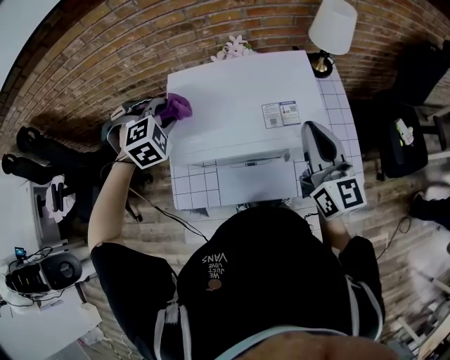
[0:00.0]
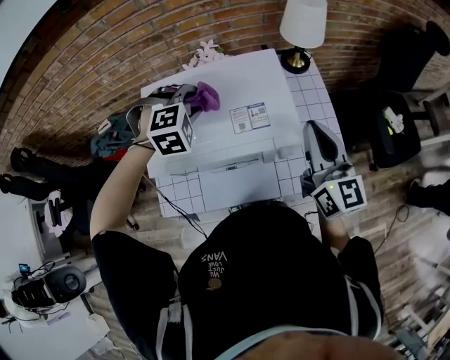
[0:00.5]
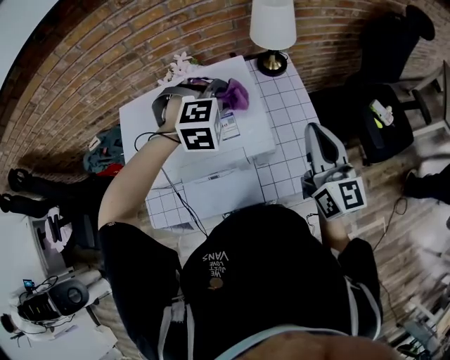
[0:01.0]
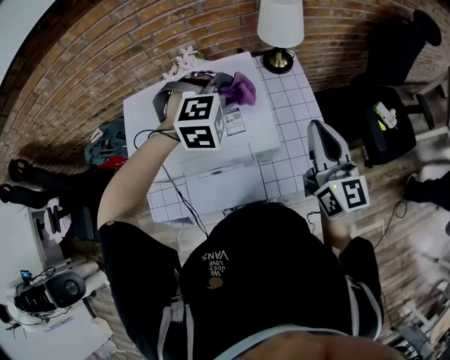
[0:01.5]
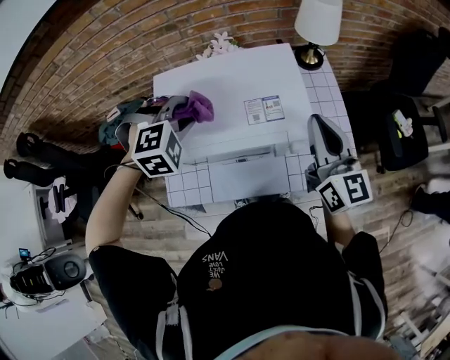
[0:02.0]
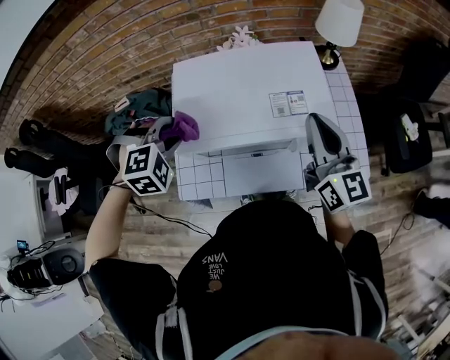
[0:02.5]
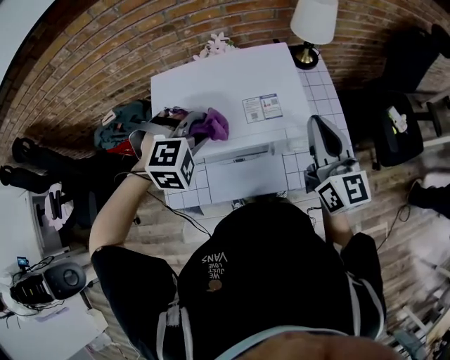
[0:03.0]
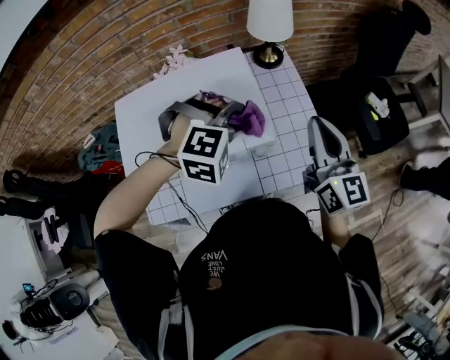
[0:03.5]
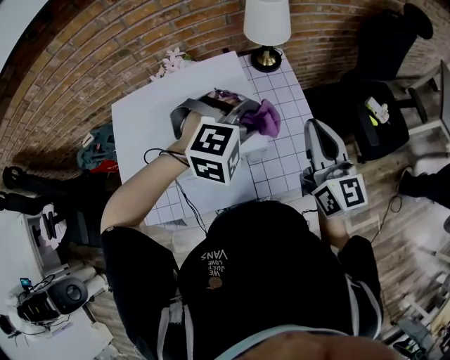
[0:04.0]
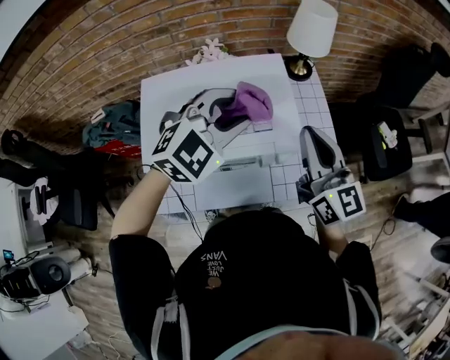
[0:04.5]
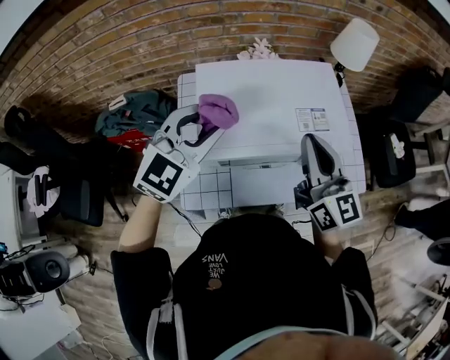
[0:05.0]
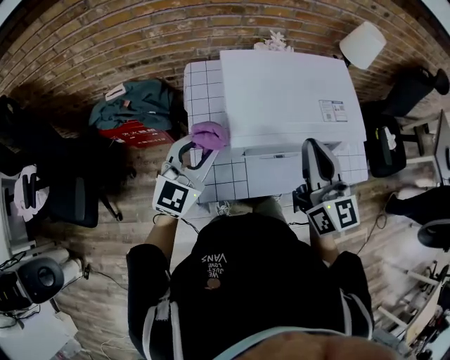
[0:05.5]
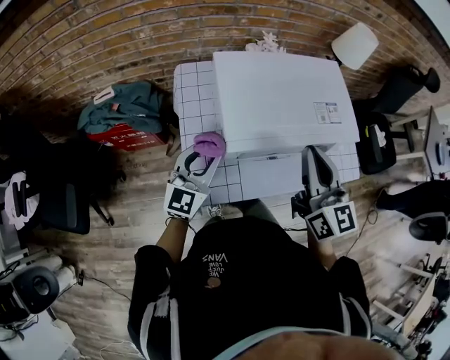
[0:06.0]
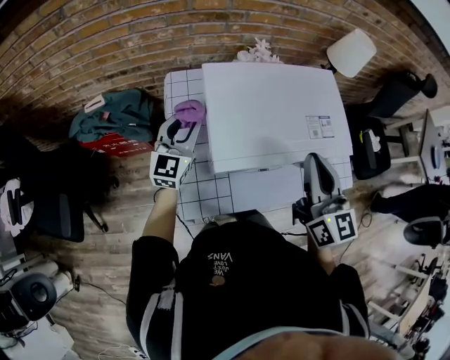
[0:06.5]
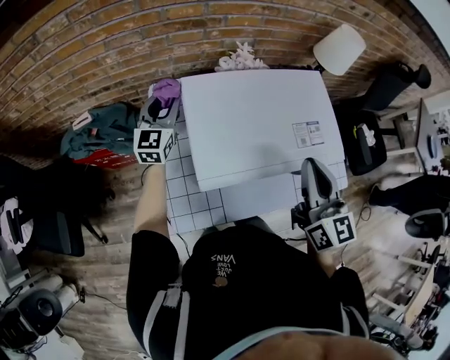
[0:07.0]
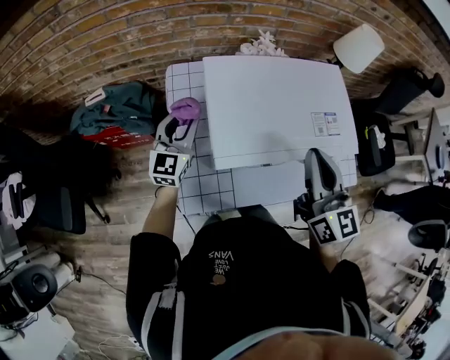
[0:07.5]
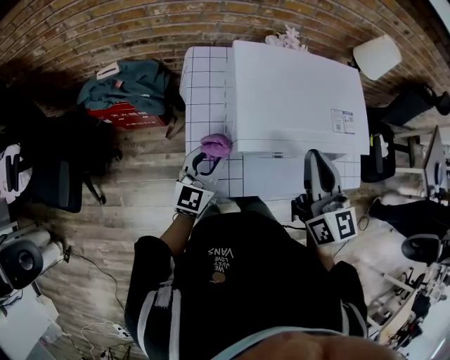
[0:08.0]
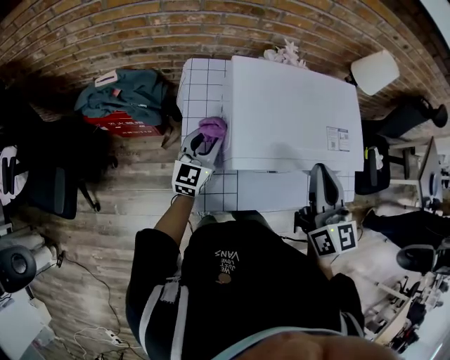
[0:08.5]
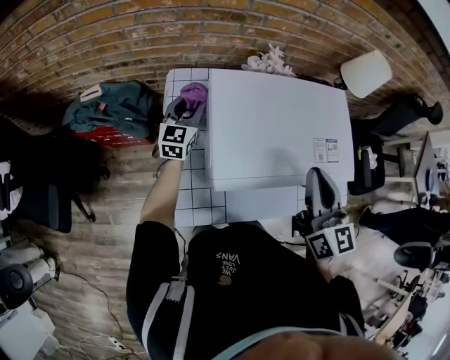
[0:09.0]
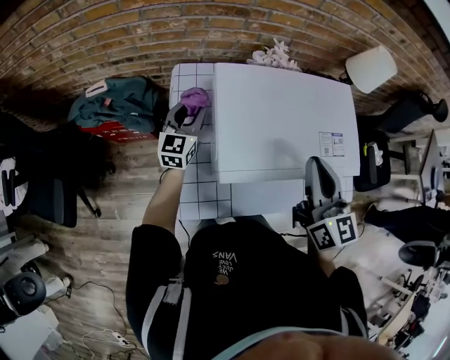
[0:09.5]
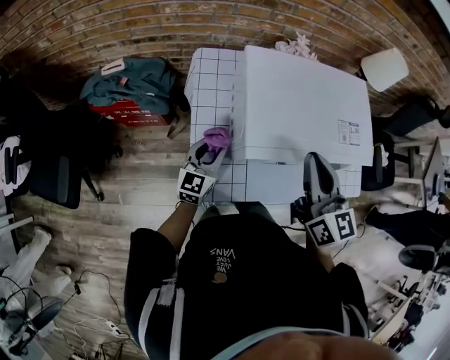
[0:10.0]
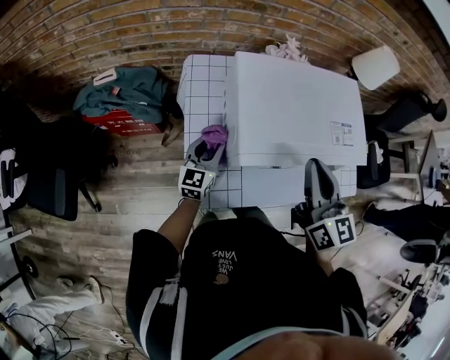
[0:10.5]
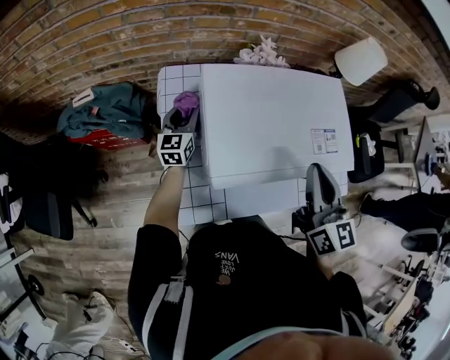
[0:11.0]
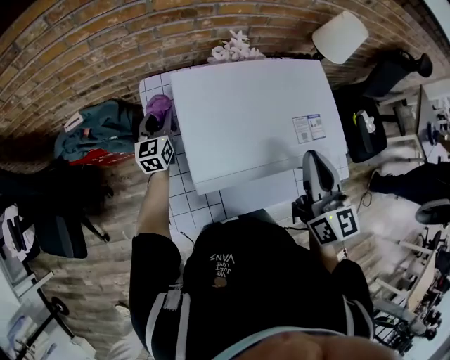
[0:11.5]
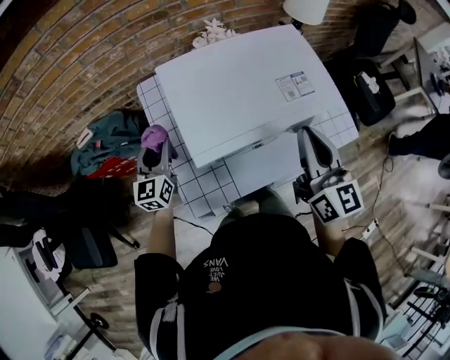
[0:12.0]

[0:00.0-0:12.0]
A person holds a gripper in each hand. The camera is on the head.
0:00.0 to 0:02.0: The left gripper is displaced to the right by about 10 cm. Meanwhile the right gripper heads to the right, covering about 5 cm.
0:02.0 to 0:04.0: The right gripper shifts by about 10 cm. The left gripper shifts by about 30 cm, and turns by about 30 degrees.
0:04.0 to 0:06.0: The grippers both shift to the left and backward by approximately 40 cm. The left gripper tilts its fingers approximately 50 degrees upward.
0:06.0 to 0:08.0: The right gripper moves roughly 5 cm to the right and comes back, while the left gripper goes some 5 cm downward, and reaches roughly 25 cm forward, then returns.
0:08.0 to 0:10.0: The left gripper moves downward, some 5 cm, and goes forward and returns, roughly 25 cm each way.
0:10.0 to 0:12.0: The right gripper is displaced to the right by roughly 10 cm. The left gripper heads upward, covering approximately 5 cm, and goes forward and returns, some 20 cm each way.

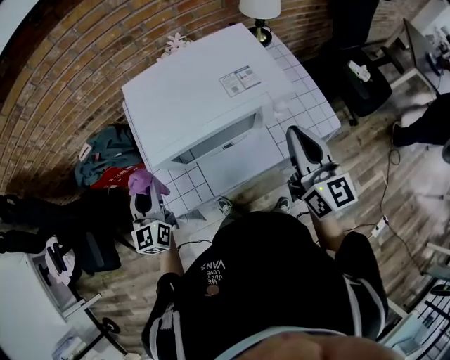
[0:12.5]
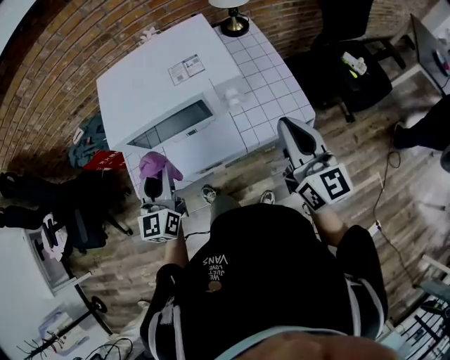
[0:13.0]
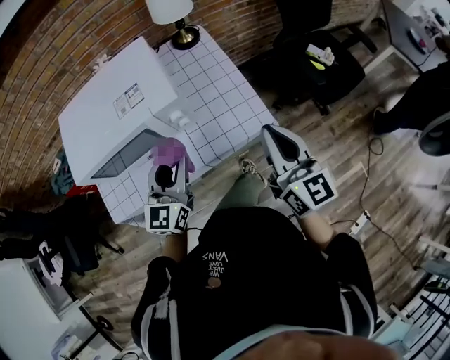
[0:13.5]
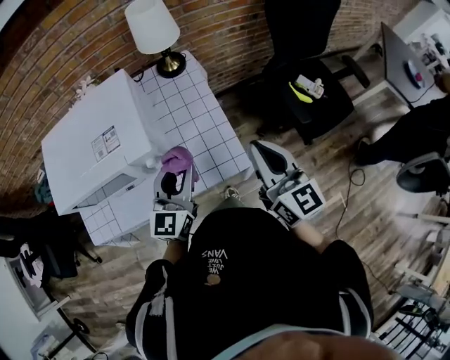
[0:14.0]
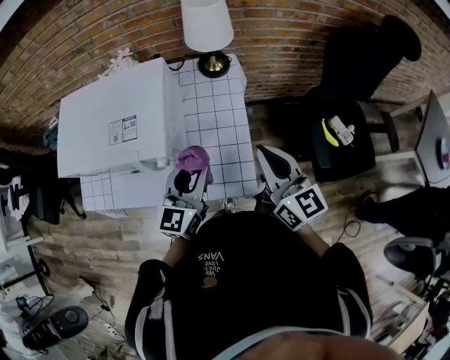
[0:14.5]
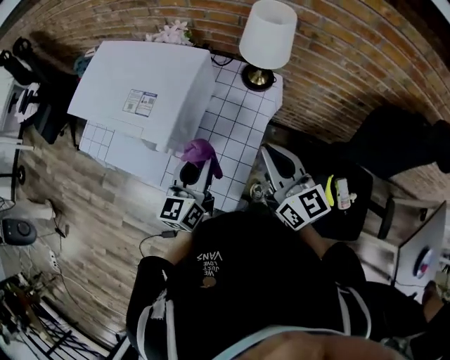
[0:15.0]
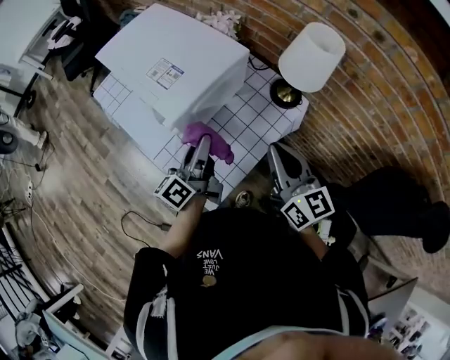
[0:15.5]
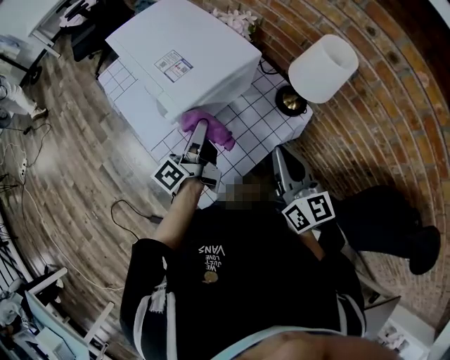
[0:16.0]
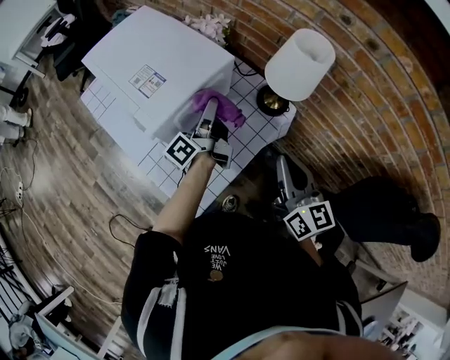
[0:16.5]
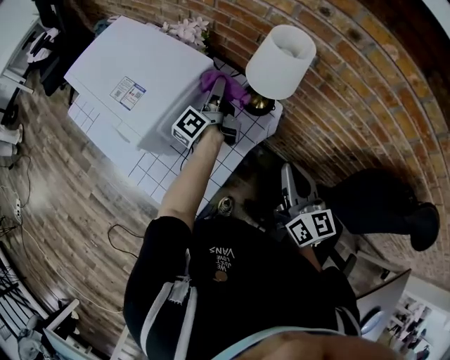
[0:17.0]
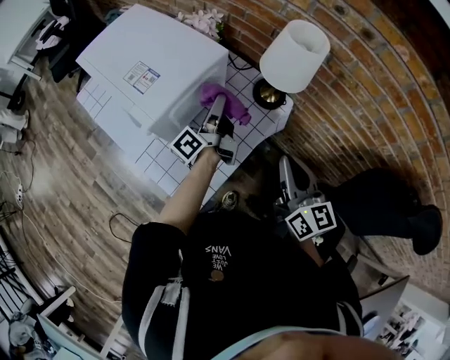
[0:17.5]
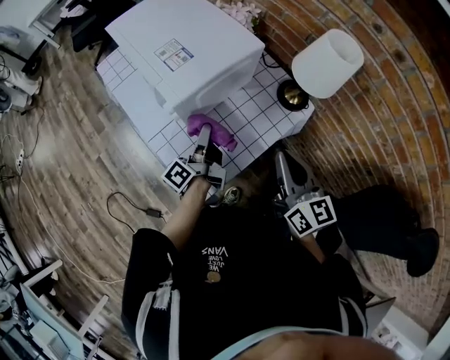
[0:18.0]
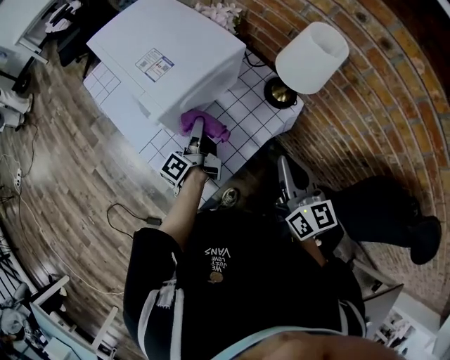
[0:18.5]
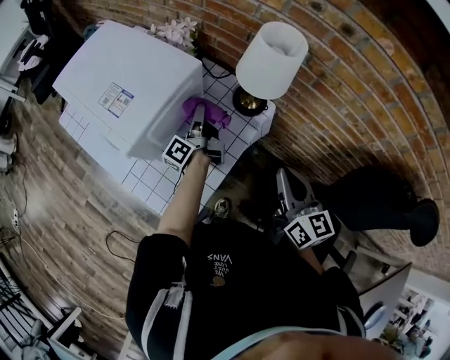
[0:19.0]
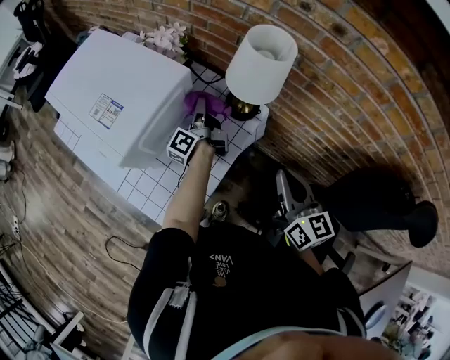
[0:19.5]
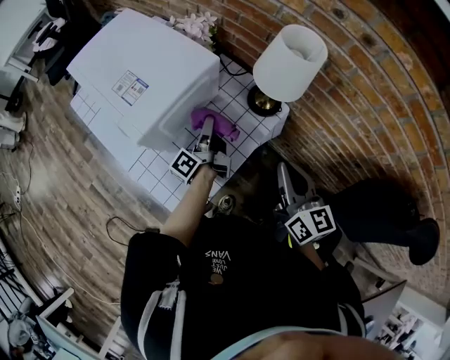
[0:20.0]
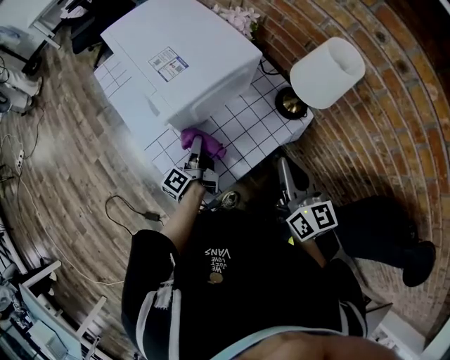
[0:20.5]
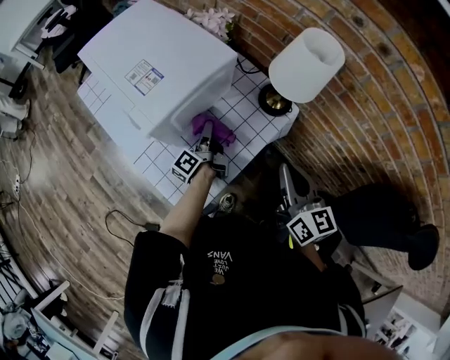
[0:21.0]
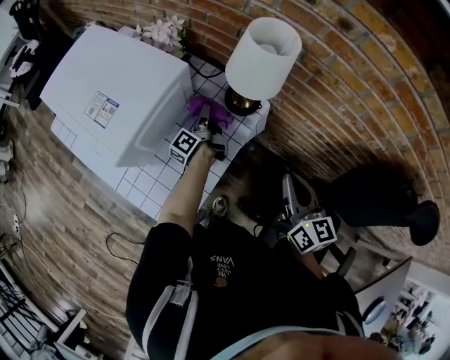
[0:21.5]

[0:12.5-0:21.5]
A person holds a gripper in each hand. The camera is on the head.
0:12.5 to 0:14.5: The right gripper moves to the right and forward, some 35 cm, and turns by roughly 30 degrees. Meanwhile the left gripper travels to the right by approximately 60 cm.
0:14.5 to 0:17.0: The right gripper ends up about 25 cm from where it was, and rotates about 30 degrees. Meanwhile the left gripper changes place by about 30 cm, and swivels some 80 degrees.
0:17.0 to 0:19.5: The left gripper shifts about 10 cm downward, and moves some 20 cm backward and comes back. Meanwhile the right gripper travels to the left and back again, about 10 cm each way.
0:19.5 to 0:21.5: The left gripper goes roughly 5 cm downward, and goes to the left and returns, about 20 cm each way. The right gripper travels to the left and back again, roughly 10 cm each way.

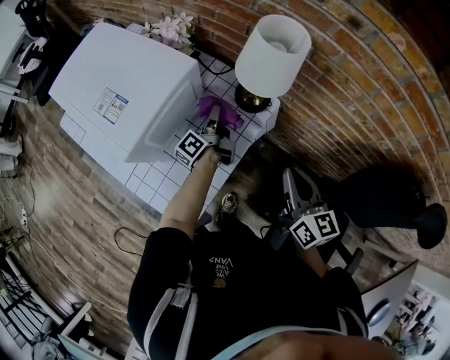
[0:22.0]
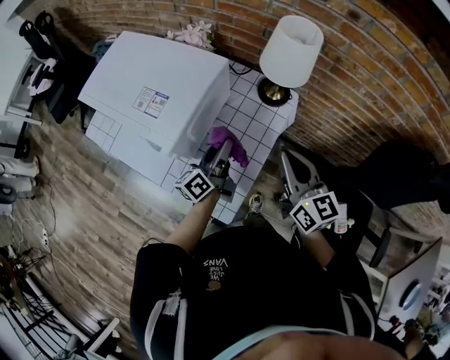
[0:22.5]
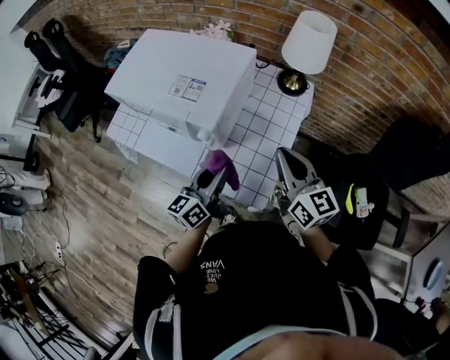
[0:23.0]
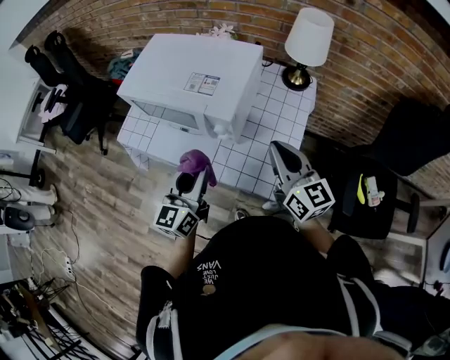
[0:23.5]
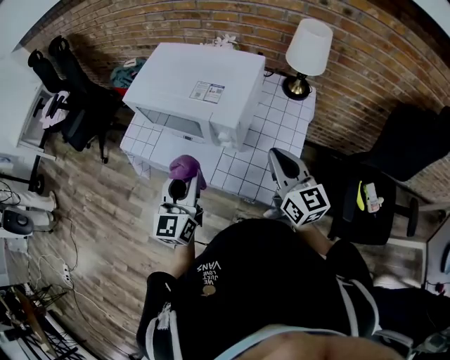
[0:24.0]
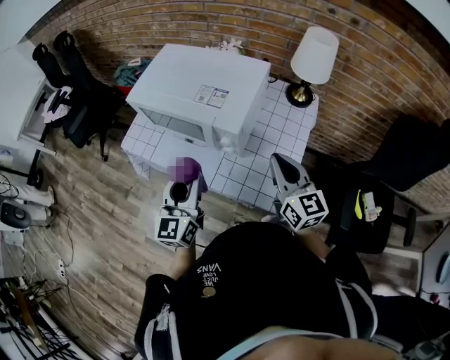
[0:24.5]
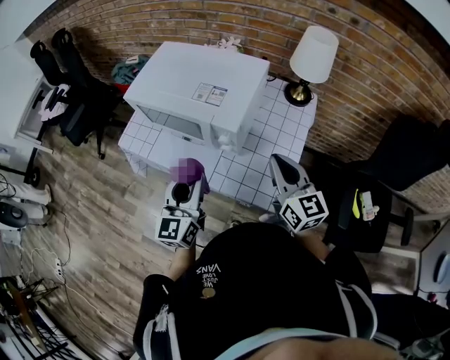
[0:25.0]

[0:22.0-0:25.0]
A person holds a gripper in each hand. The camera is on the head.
0:22.0 to 0:23.5: The left gripper shifts some 40 cm backward, to the left and upward, and rolls clockwise, seen from behind, by some 60 degrees. Meanwhile the right gripper shifts roughly 30 cm to the left.
0:23.5 to 0:25.0: There are only small adjustments of the grippers.

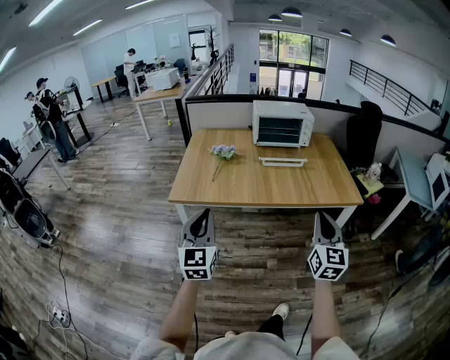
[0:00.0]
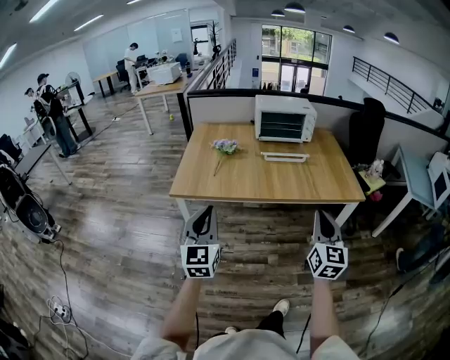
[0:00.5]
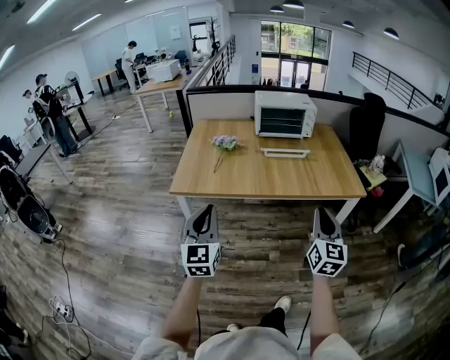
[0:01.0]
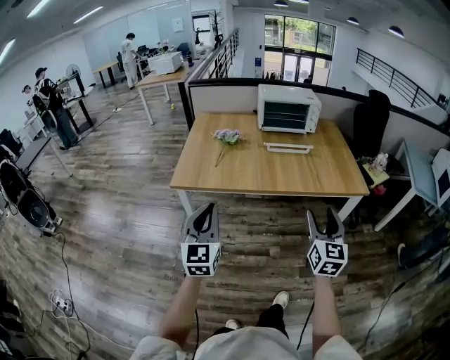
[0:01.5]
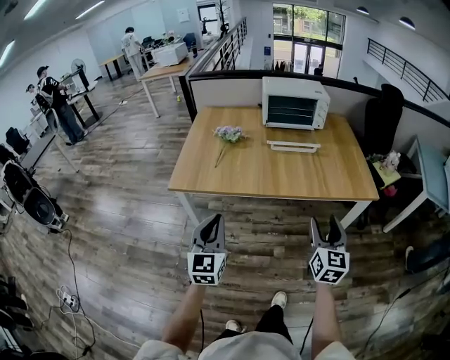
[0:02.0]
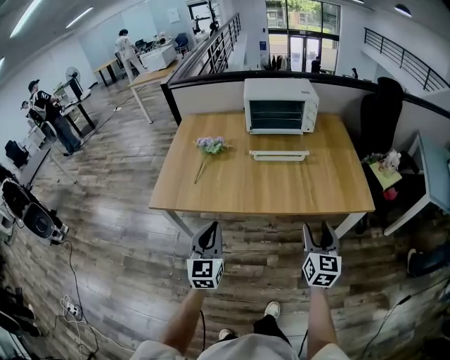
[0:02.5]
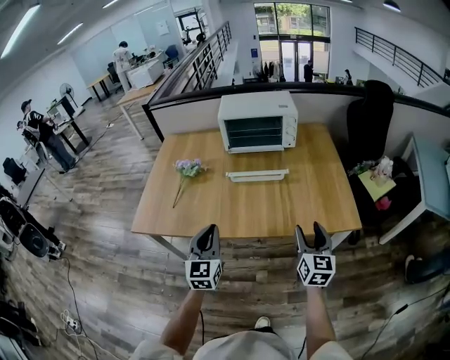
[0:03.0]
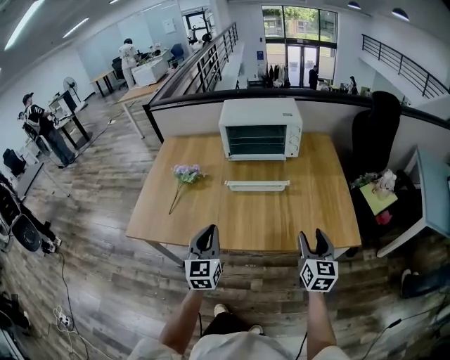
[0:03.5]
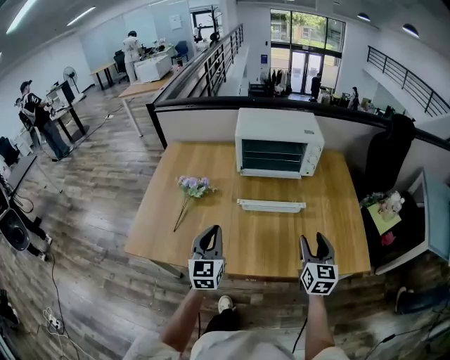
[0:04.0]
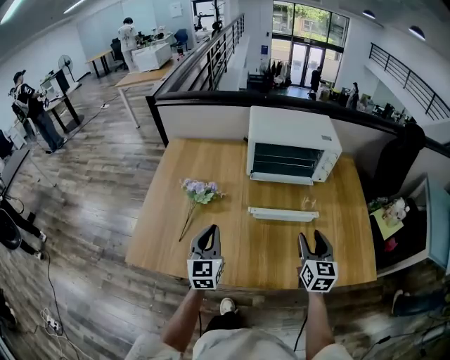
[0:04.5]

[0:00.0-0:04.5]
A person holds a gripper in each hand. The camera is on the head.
0:00.0 to 0:02.0: The right gripper moves downward and forward, approximately 10 cm, and opens up; the left gripper shifts approximately 5 cm downward.
0:02.0 to 0:04.5: Both grippers travel together forward, some 40 cm.
